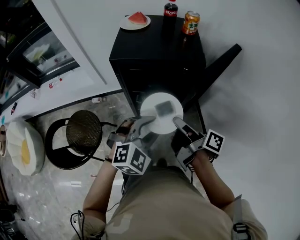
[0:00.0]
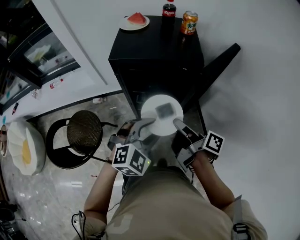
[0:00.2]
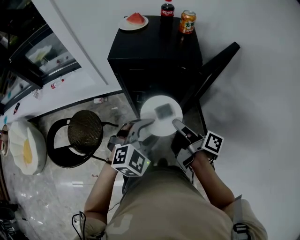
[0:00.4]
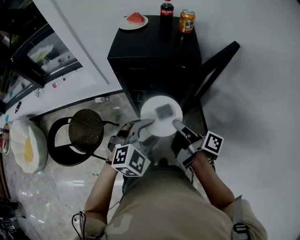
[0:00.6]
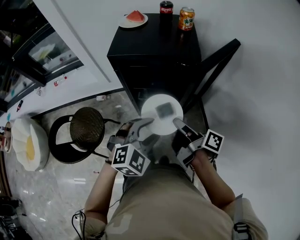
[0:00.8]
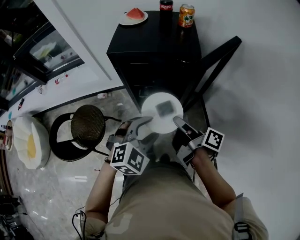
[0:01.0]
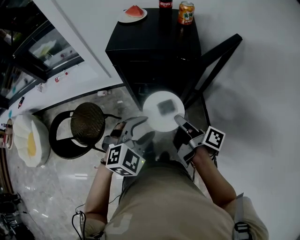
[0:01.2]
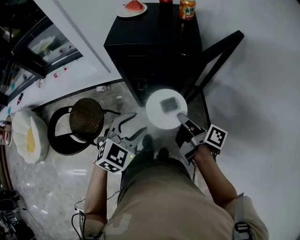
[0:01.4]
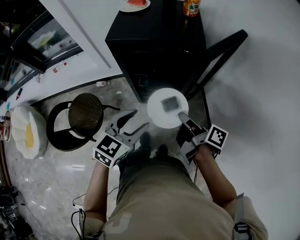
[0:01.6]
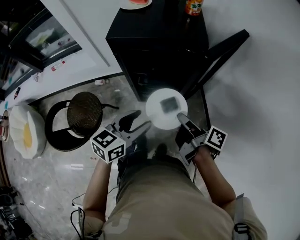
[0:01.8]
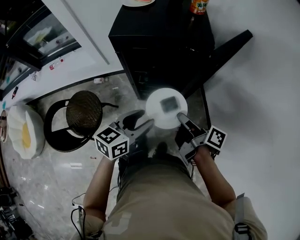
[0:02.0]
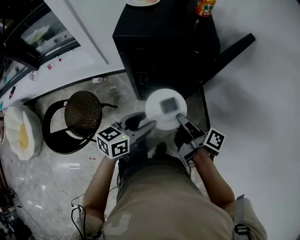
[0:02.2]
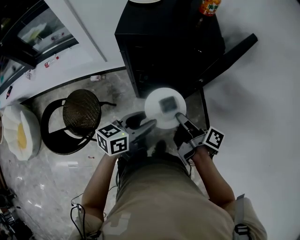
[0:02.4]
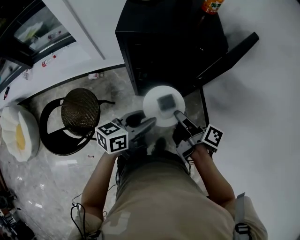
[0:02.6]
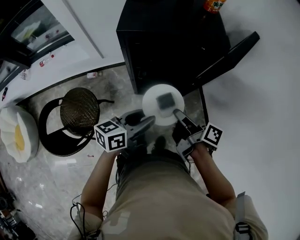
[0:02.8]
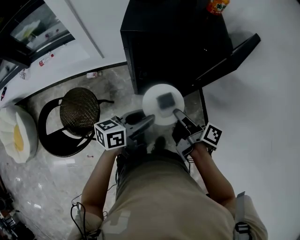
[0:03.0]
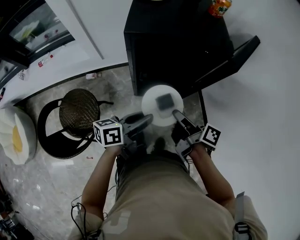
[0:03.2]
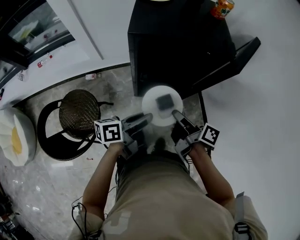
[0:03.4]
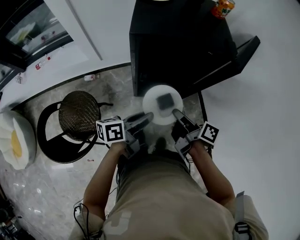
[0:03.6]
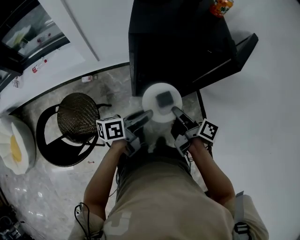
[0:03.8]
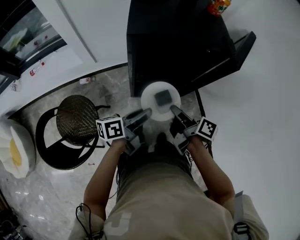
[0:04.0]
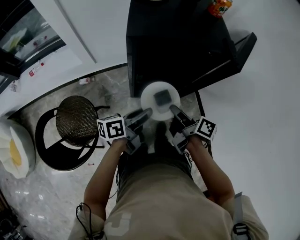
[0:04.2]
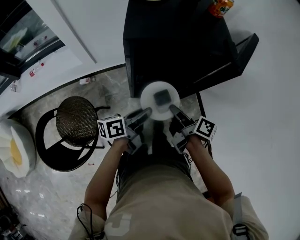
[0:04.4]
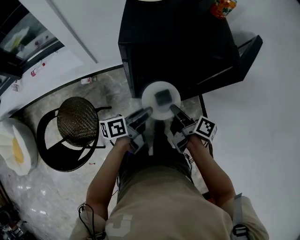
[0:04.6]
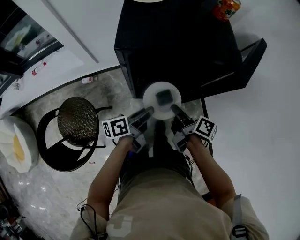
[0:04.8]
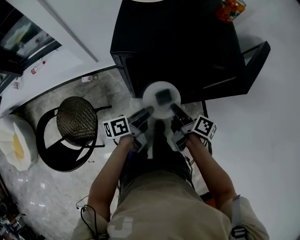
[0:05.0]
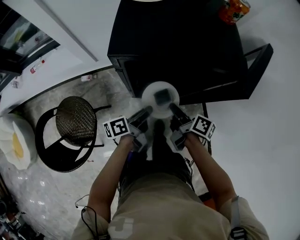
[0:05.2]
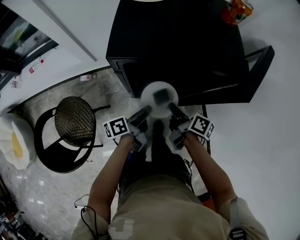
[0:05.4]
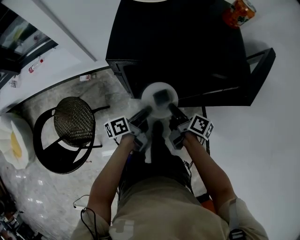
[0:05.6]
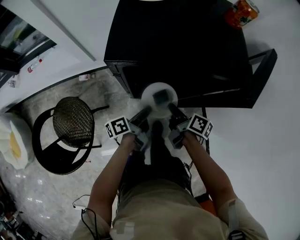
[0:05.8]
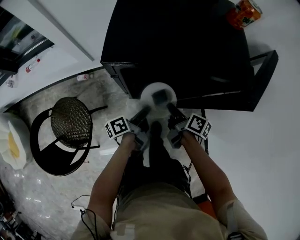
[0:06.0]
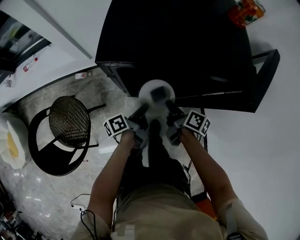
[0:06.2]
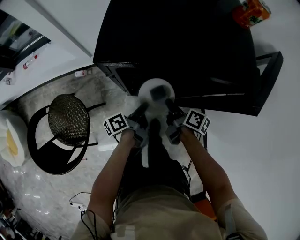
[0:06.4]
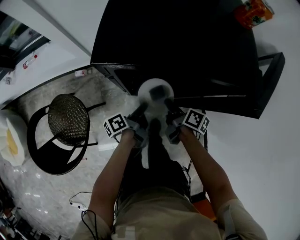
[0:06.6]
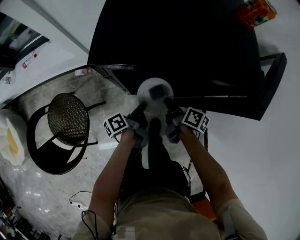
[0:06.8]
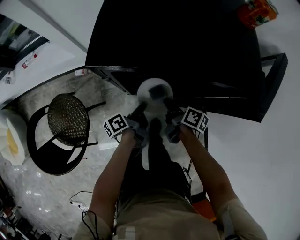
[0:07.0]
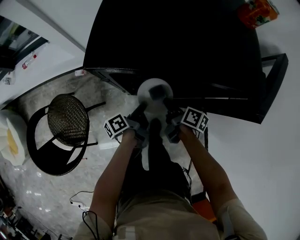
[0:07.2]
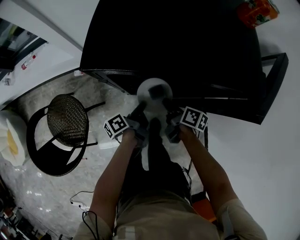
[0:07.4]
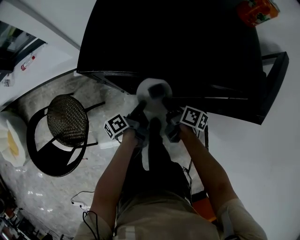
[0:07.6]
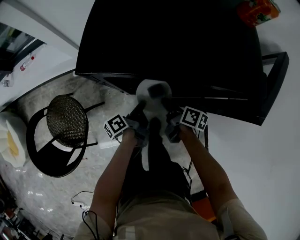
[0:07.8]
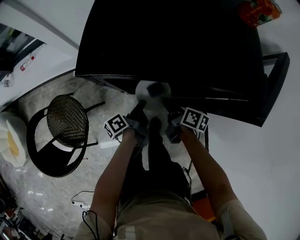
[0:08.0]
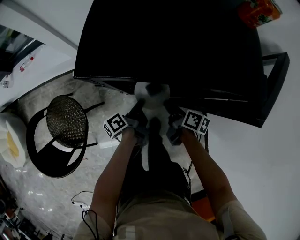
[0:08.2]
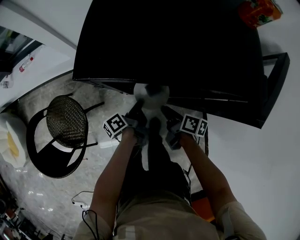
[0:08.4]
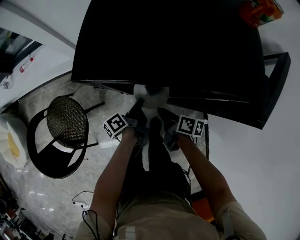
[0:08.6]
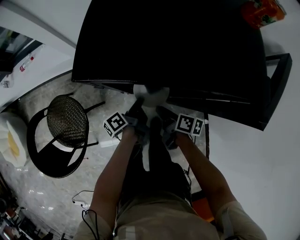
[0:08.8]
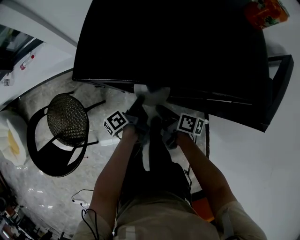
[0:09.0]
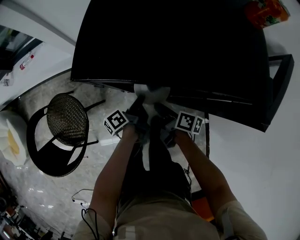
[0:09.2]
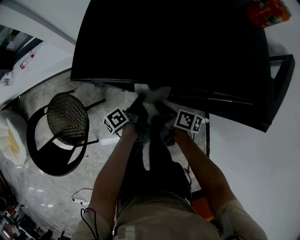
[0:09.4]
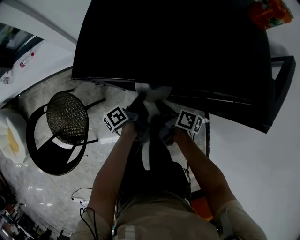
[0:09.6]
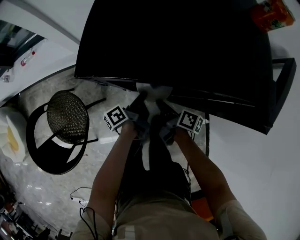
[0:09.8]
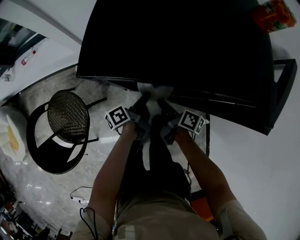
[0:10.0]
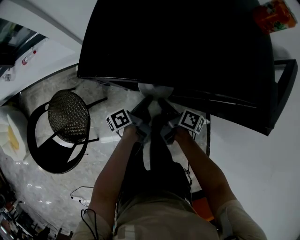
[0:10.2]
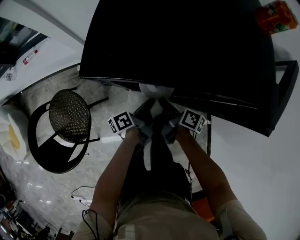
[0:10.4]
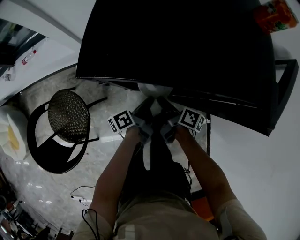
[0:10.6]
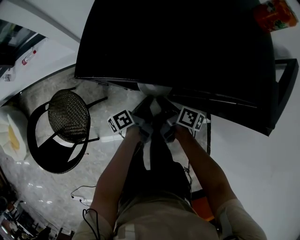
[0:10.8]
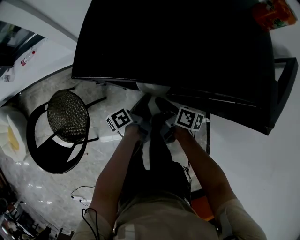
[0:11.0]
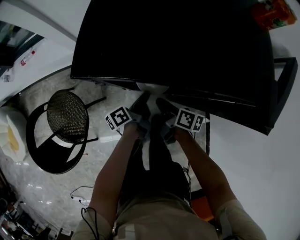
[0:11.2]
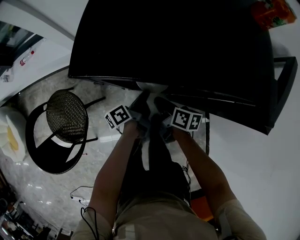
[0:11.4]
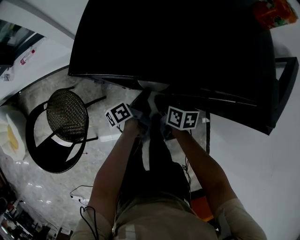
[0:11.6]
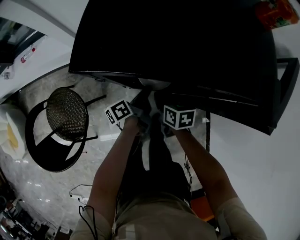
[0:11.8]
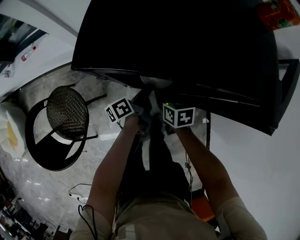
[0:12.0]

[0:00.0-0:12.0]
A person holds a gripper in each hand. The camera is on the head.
0:00.0 to 0:01.6: The right gripper changes place by some 10 cm. The left gripper changes place by roughly 5 cm, and turns by approximately 40 degrees.
0:01.6 to 0:03.0: The right gripper moves to the left, some 10 cm. Meanwhile the left gripper heads downward, covering roughly 5 cm, and twists approximately 40 degrees counterclockwise, seen from behind.
0:03.0 to 0:04.4: The left gripper shifts some 10 cm downward and forward, and rotates some 20 degrees; the right gripper ends up roughly 5 cm from where it was.
0:04.4 to 0:06.0: The right gripper is displaced forward and downward by approximately 15 cm; the left gripper is displaced downward and forward by approximately 15 cm, and turns by roughly 30 degrees.
0:06.0 to 0:07.6: The right gripper shifts roughly 5 cm downward. Meanwhile the left gripper moves some 5 cm.
0:07.6 to 0:10.4: There are only small adjustments of the grippers.
0:10.4 to 0:12.0: The right gripper rolls counterclockwise, seen from behind, by approximately 50 degrees.

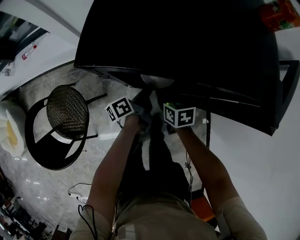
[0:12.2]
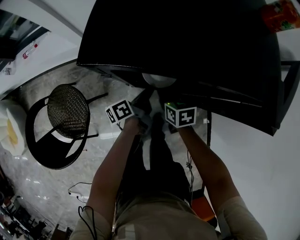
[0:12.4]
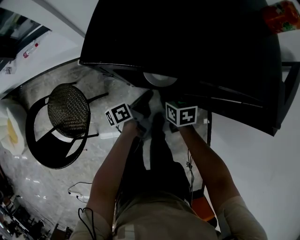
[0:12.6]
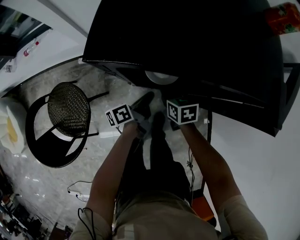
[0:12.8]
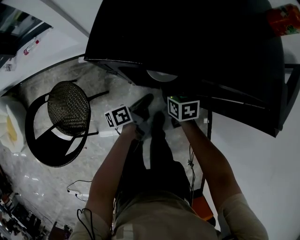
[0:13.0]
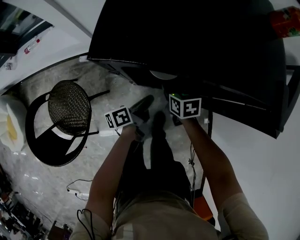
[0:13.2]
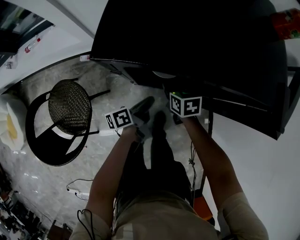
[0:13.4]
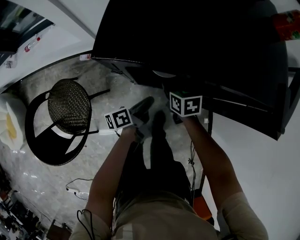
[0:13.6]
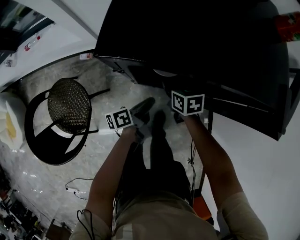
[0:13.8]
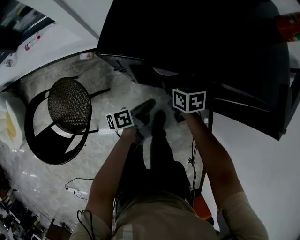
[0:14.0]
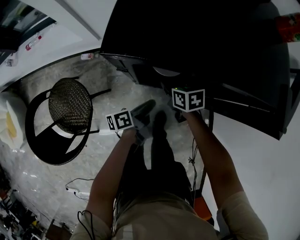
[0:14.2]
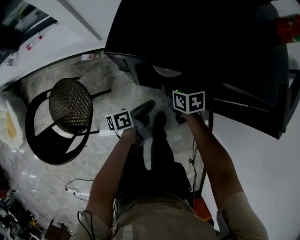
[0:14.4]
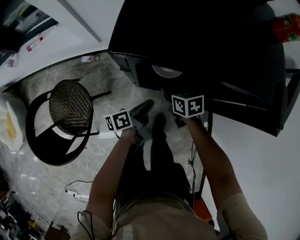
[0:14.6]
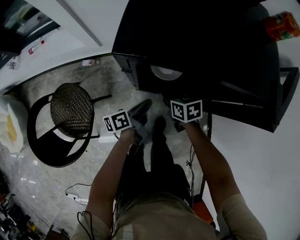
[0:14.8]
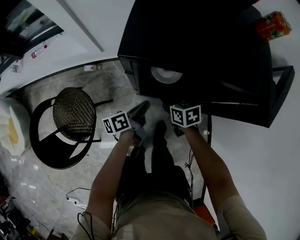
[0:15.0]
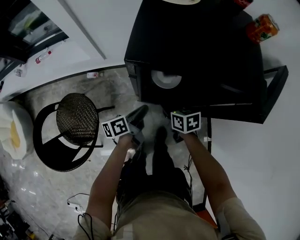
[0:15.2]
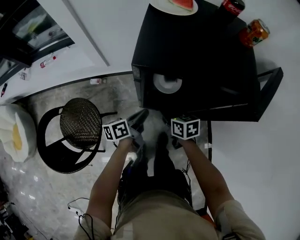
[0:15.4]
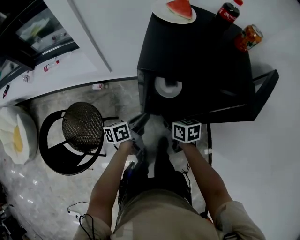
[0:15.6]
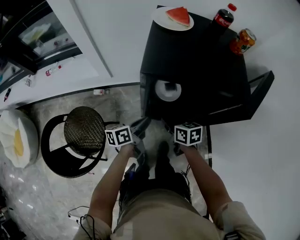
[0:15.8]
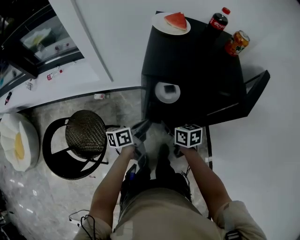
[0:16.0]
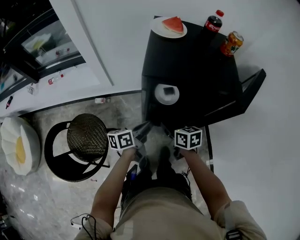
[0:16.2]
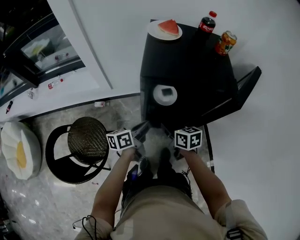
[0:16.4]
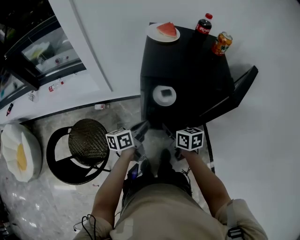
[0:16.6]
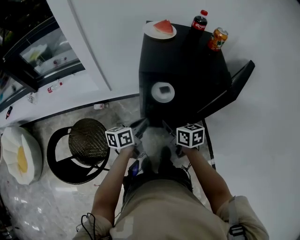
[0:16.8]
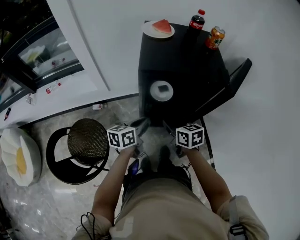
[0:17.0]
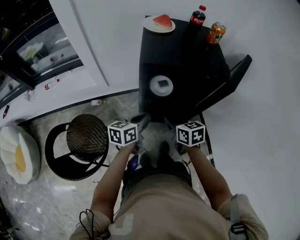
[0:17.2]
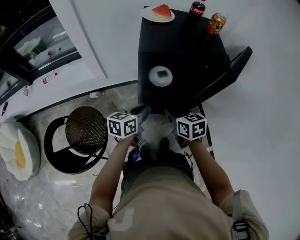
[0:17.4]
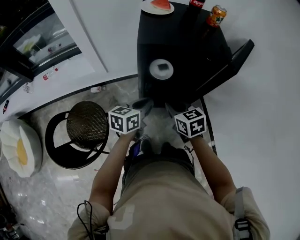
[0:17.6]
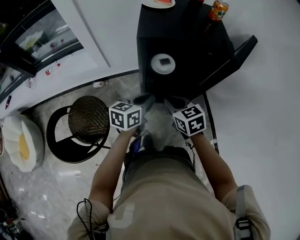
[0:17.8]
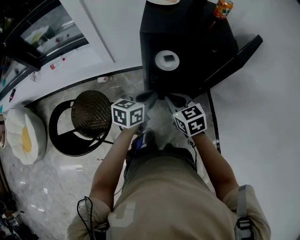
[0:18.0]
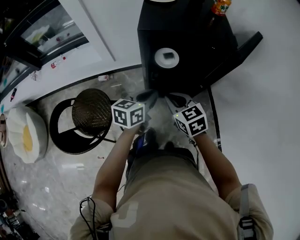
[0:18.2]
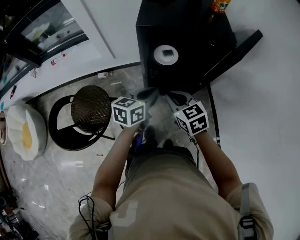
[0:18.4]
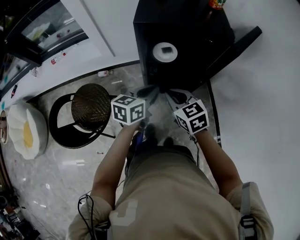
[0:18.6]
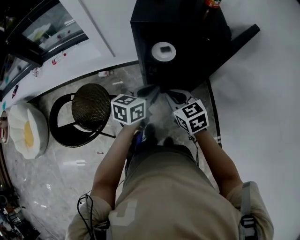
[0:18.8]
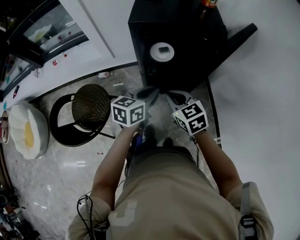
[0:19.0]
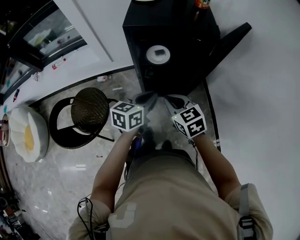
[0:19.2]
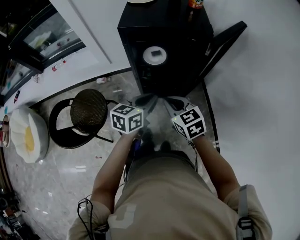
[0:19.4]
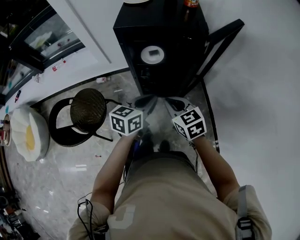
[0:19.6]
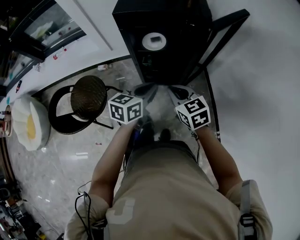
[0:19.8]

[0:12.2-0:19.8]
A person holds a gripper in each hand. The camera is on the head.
0:12.2 to 0:13.8: The left gripper moves backward, some 5 cm.
0:13.8 to 0:15.2: The right gripper moves backward, some 5 cm. Meanwhile the left gripper travels upward by about 5 cm.
0:15.2 to 0:16.8: The left gripper travels upward by approximately 15 cm, and rotates roughly 30 degrees, while the right gripper is displaced upward and backward by about 15 cm.
0:16.8 to 0:18.2: The grippers both shift backward by some 5 cm. The right gripper rotates some 30 degrees.
0:18.2 to 0:19.8: Both grippers travel together to the right and backward, about 10 cm.

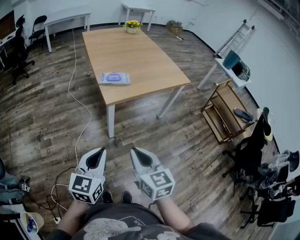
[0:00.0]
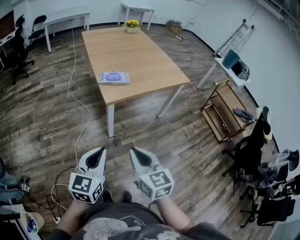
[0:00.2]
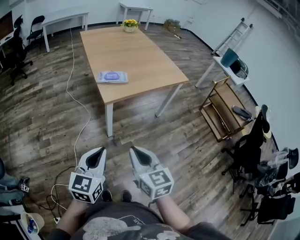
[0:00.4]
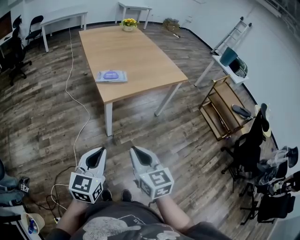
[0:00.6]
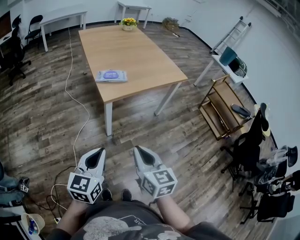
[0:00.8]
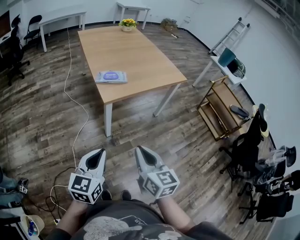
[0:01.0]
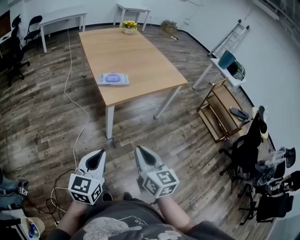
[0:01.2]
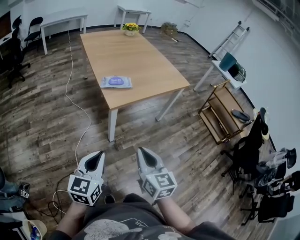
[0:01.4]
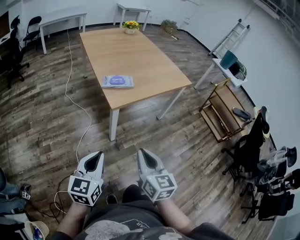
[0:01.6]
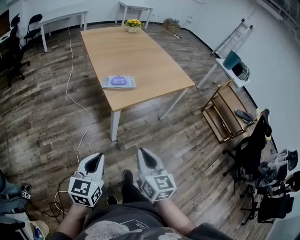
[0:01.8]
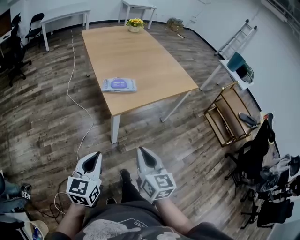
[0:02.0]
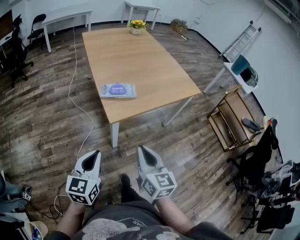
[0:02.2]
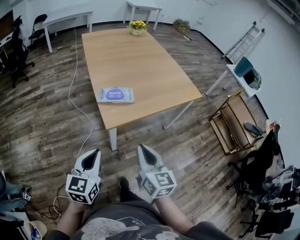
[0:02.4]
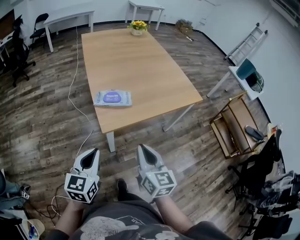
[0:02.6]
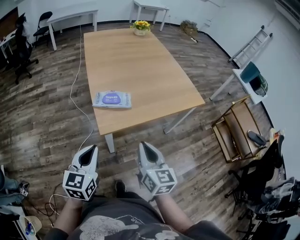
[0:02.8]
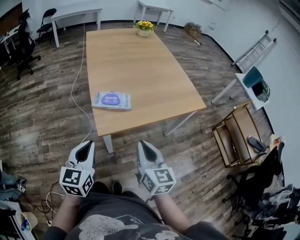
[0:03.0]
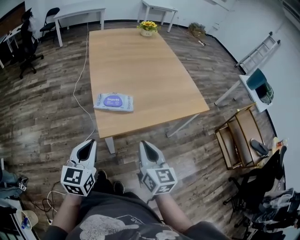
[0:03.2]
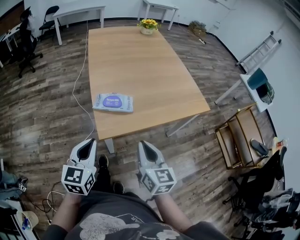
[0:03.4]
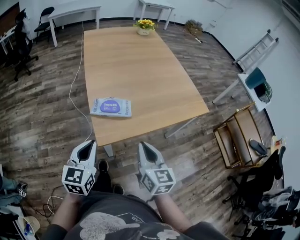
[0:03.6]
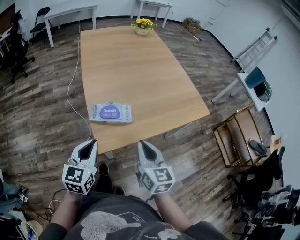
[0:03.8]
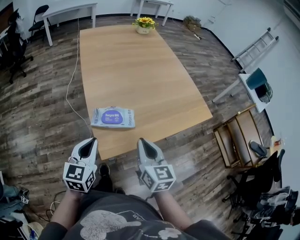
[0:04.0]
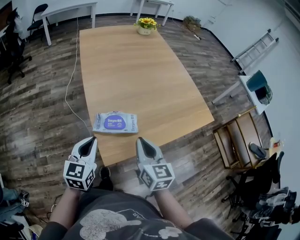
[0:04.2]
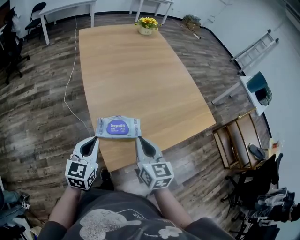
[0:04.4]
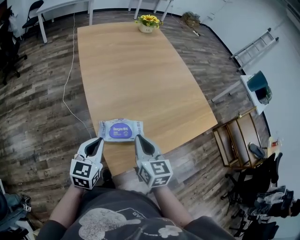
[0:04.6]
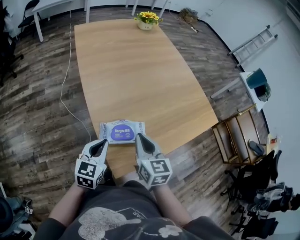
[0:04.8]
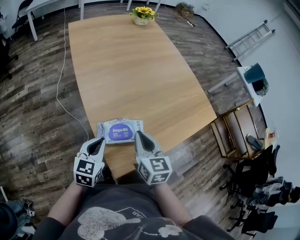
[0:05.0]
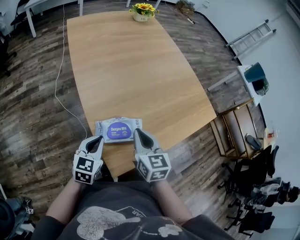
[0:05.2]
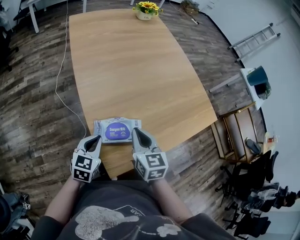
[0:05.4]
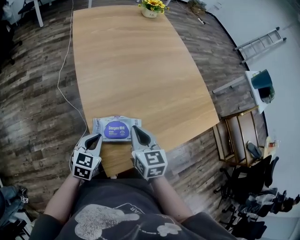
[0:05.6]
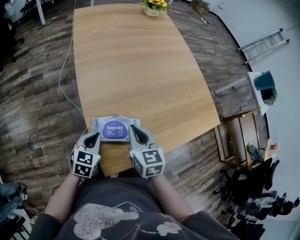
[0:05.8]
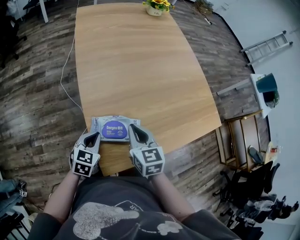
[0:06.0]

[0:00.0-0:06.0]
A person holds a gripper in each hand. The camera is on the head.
0:00.0 to 0:01.6: The left gripper heads to the left, covering approximately 5 cm.
0:01.6 to 0:03.0: The two grippers go approximately 20 cm forward.
0:03.0 to 0:04.4: The two grippers go some 20 cm forward.
0:04.4 to 0:06.0: The right gripper shifts approximately 10 cm forward and downward. The left gripper is displaced downward and forward by roughly 15 cm, and rotates about 20 degrees.
